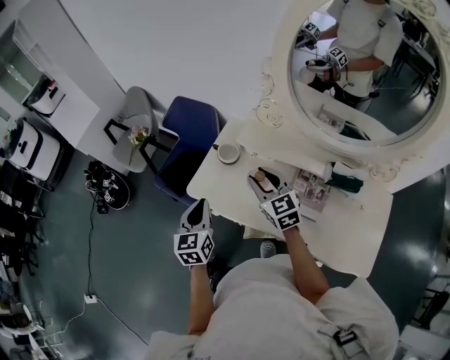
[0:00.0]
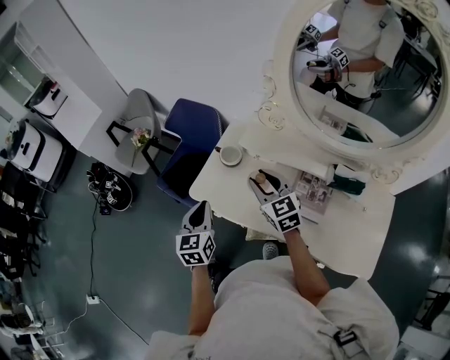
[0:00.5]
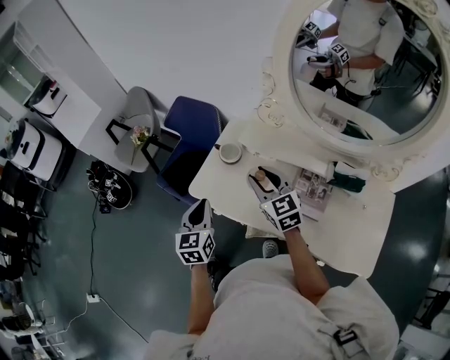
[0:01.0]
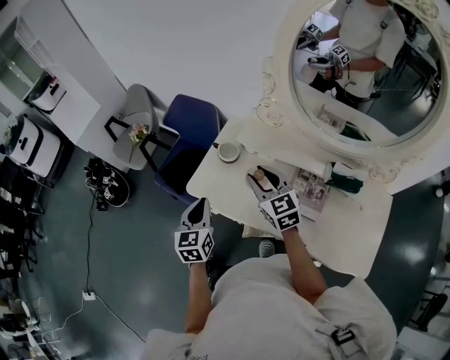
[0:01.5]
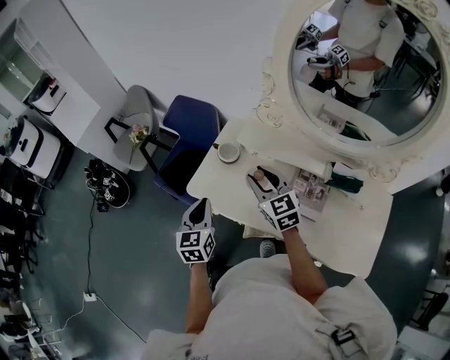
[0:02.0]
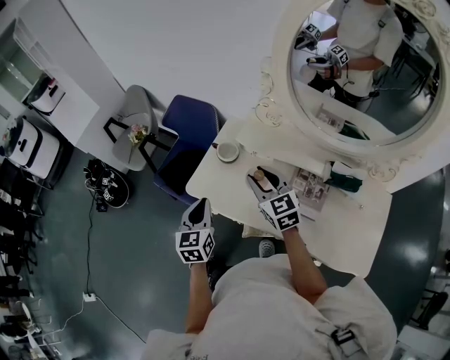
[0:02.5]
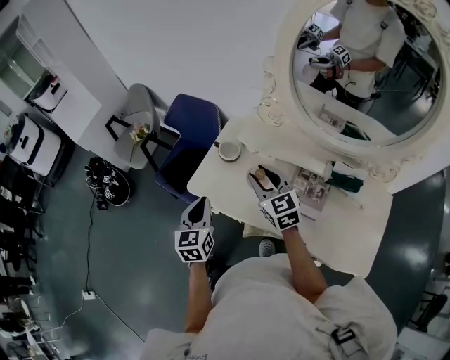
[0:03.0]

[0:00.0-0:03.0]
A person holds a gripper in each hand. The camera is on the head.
0.0 to 1.5 s: The grippers move only a little.
1.5 to 3.0 s: Both grippers stay about where they are.

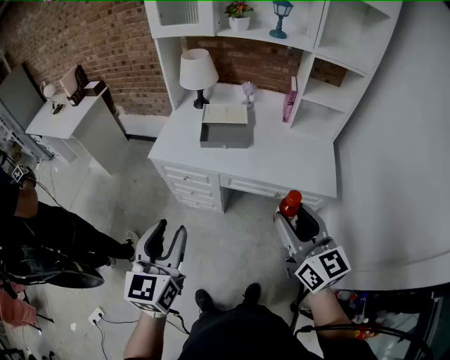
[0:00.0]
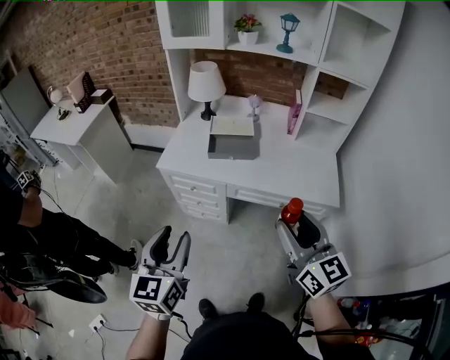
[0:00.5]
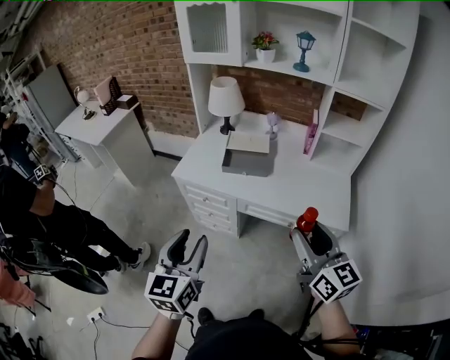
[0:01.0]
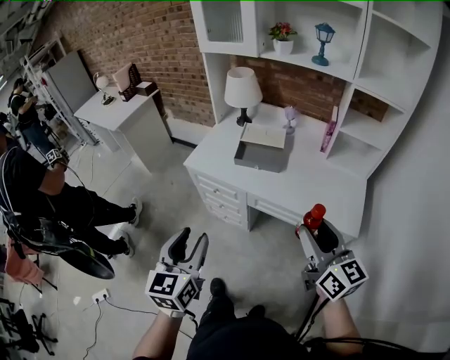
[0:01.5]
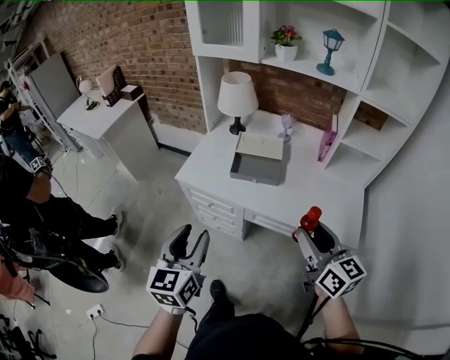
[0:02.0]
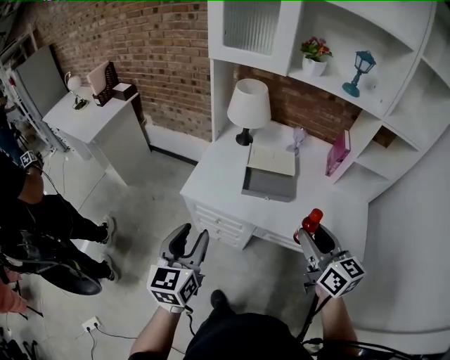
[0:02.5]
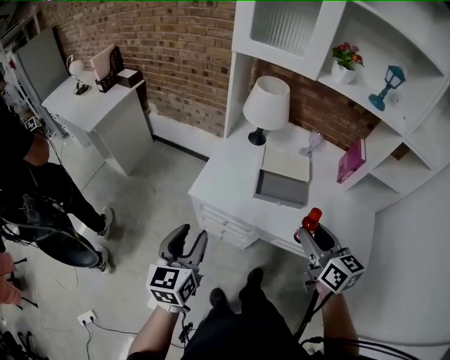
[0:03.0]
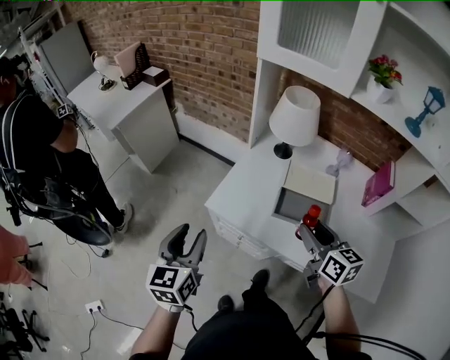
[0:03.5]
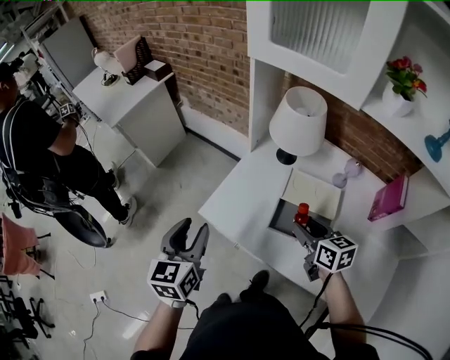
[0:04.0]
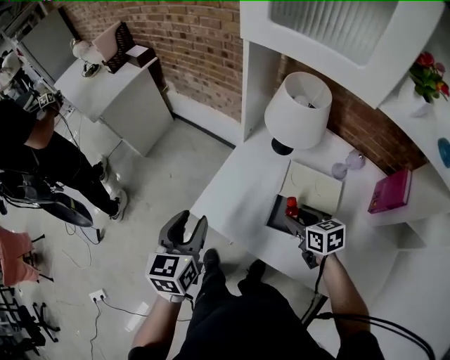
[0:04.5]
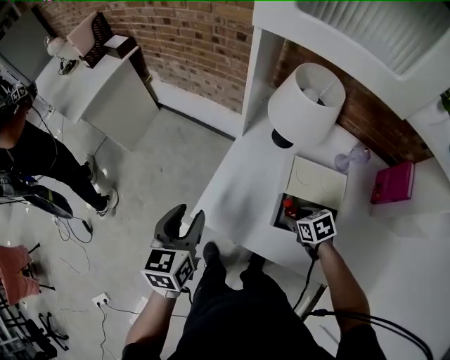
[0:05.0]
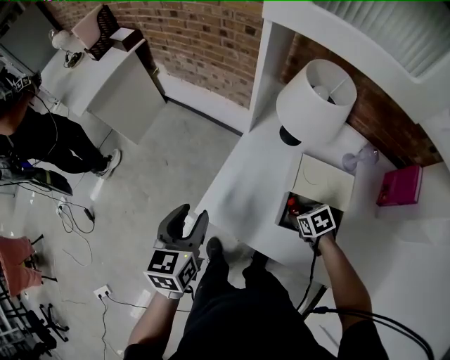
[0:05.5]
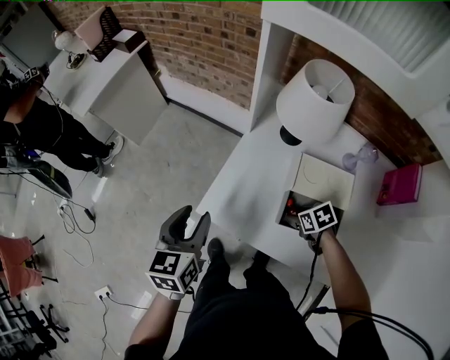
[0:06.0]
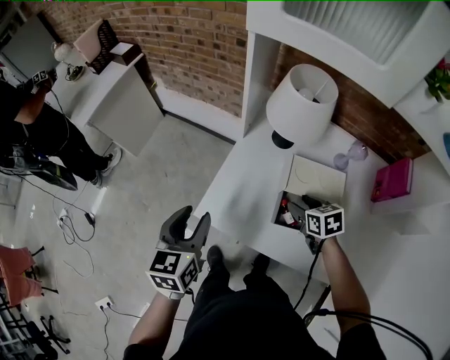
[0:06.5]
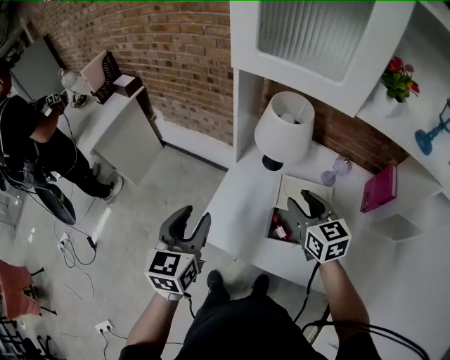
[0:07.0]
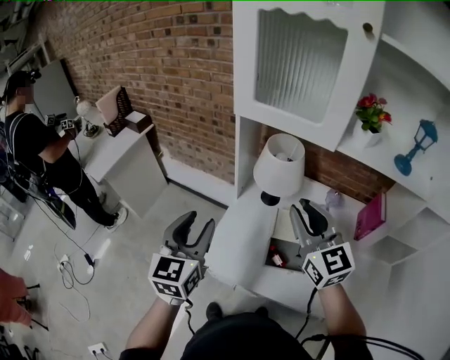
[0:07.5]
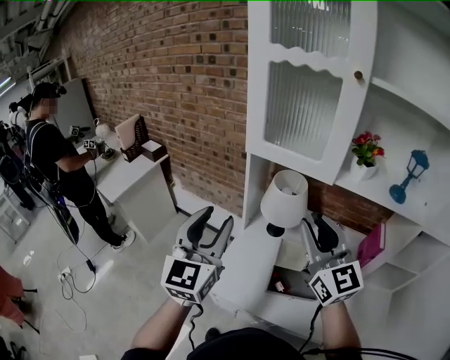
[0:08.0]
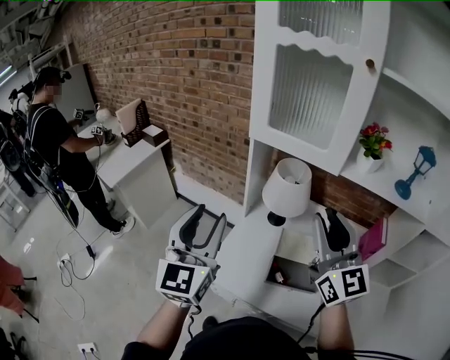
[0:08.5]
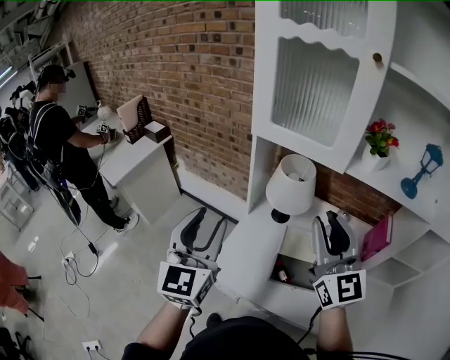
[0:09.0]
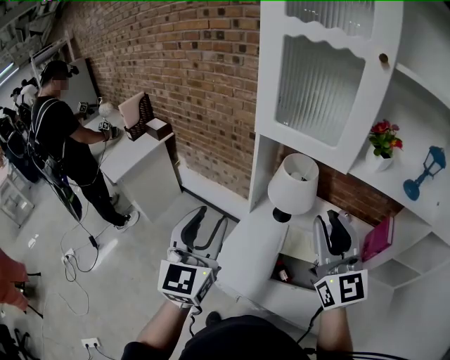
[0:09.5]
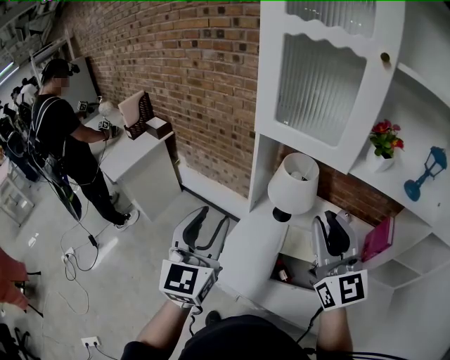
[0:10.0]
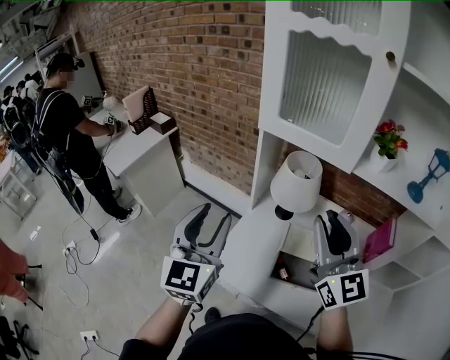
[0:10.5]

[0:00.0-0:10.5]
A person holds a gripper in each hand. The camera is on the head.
0.0 to 2.0 s: Both grippers travel together forward, roughly 10 cm.
2.0 to 4.0 s: The right gripper shifts about 40 cm forward and downward, and turns by roughly 30 degrees. Meanwhile the left gripper goes roughly 35 cm forward.
4.0 to 6.5 s: The right gripper goes some 15 cm downward and forward, and turns by some 20 degrees; the left gripper is displaced forward and downward by about 10 cm.
6.5 to 8.5 s: The left gripper shifts some 25 cm upward, and angles its fingers upward, by approximately 40 degrees, while the right gripper is displaced upward by about 40 cm, points its fingers approximately 70 degrees further upward, and closes.
8.5 to 10.5 s: The grippers move only a little.

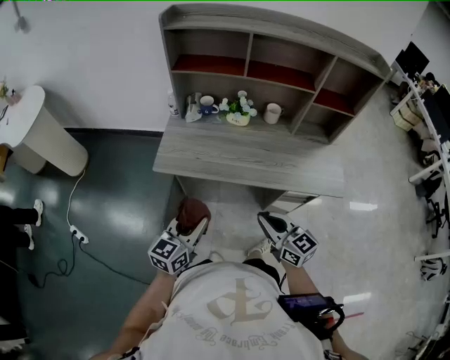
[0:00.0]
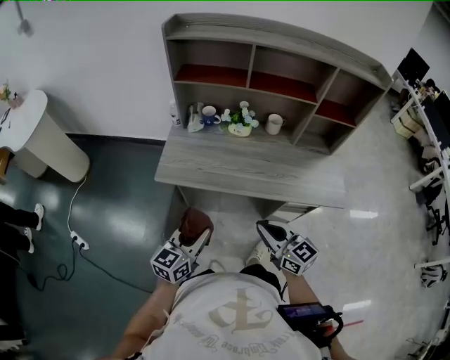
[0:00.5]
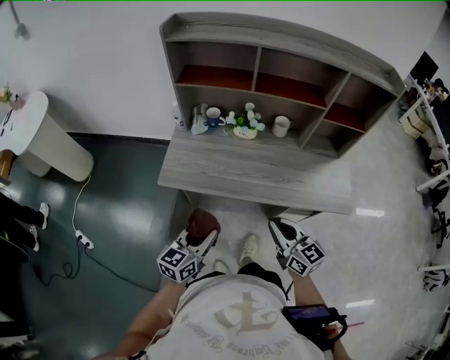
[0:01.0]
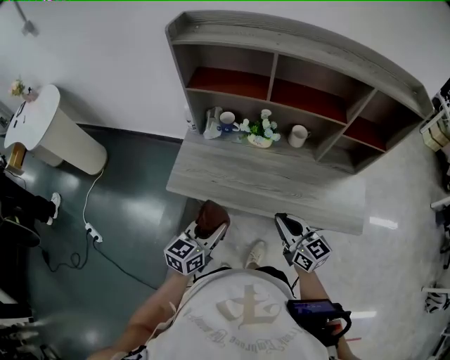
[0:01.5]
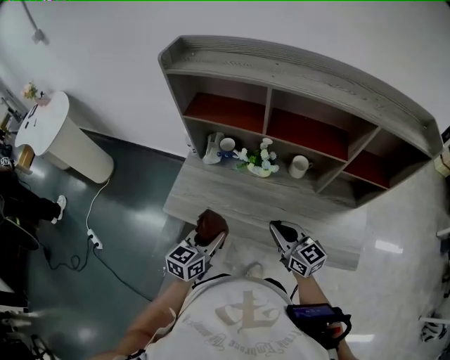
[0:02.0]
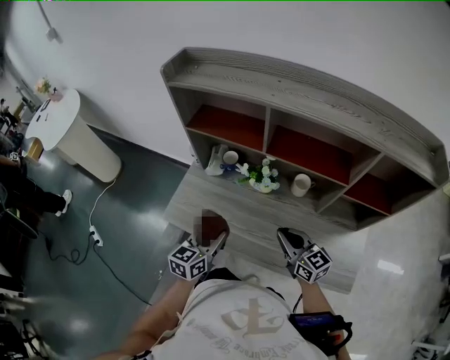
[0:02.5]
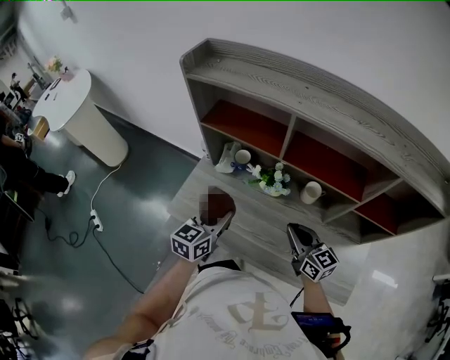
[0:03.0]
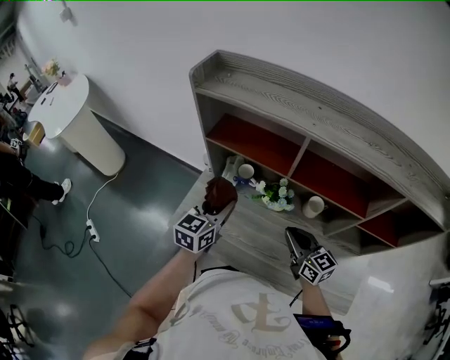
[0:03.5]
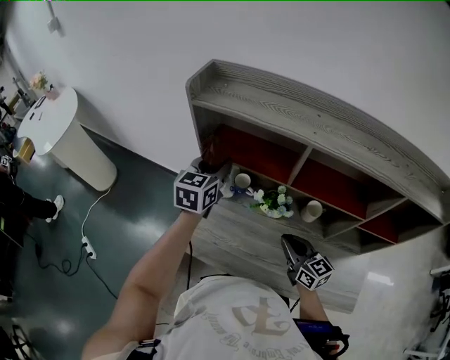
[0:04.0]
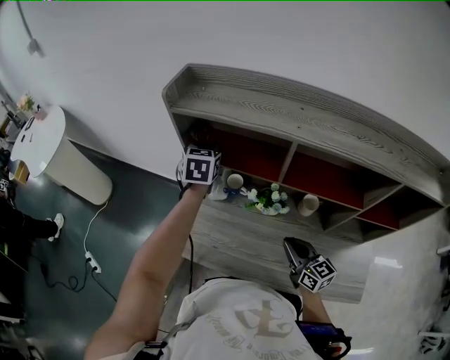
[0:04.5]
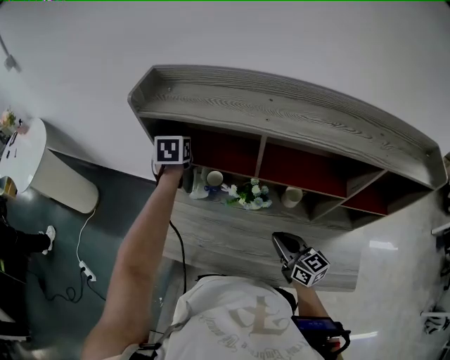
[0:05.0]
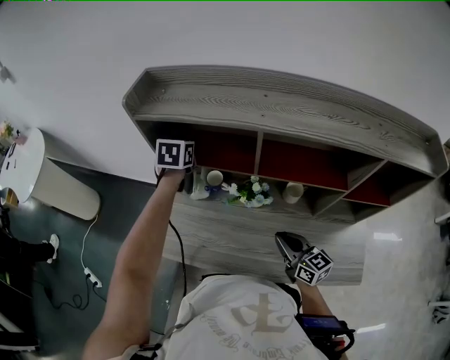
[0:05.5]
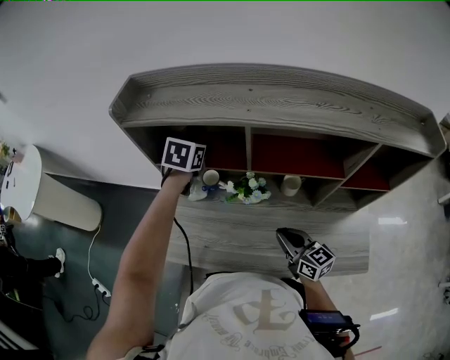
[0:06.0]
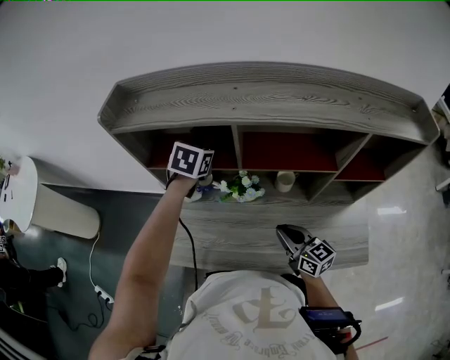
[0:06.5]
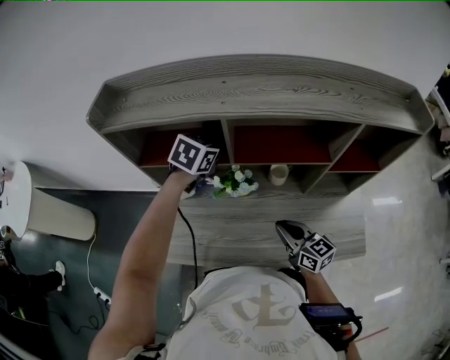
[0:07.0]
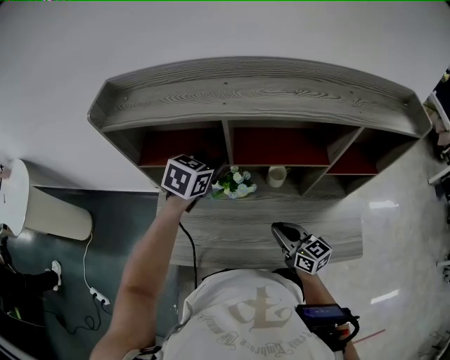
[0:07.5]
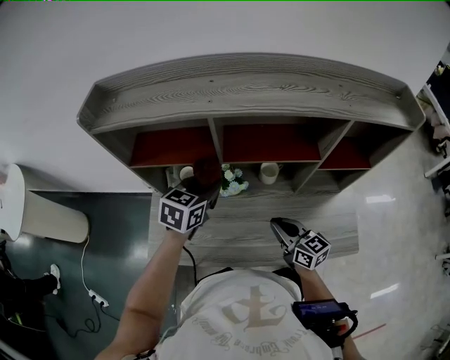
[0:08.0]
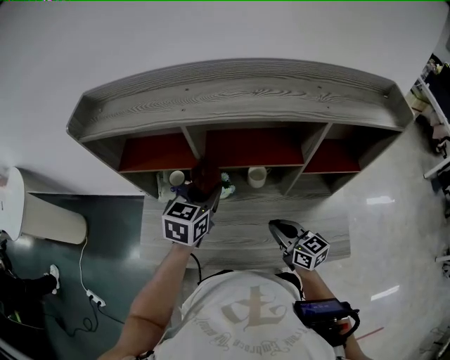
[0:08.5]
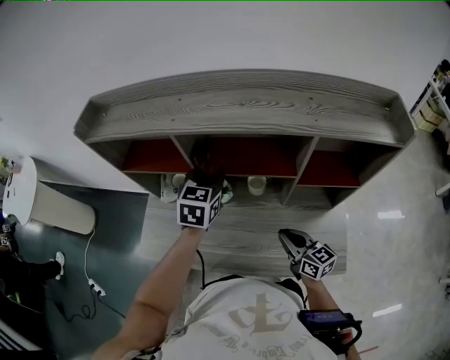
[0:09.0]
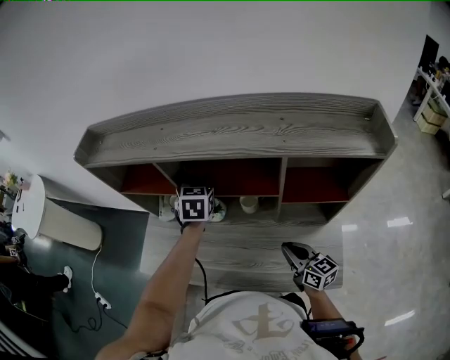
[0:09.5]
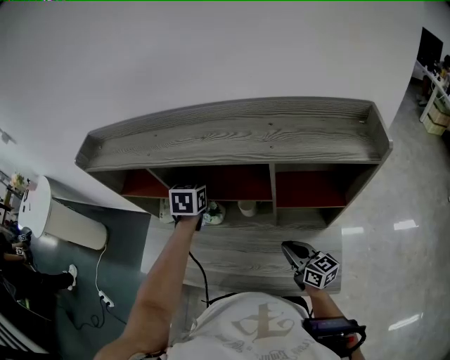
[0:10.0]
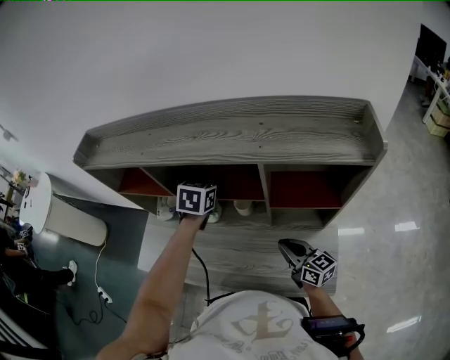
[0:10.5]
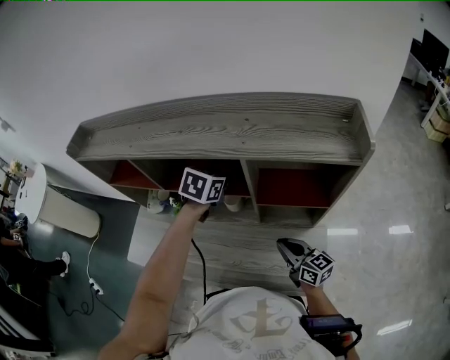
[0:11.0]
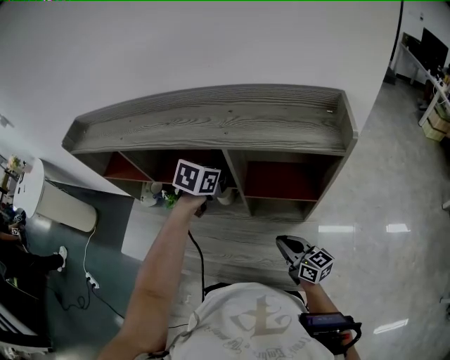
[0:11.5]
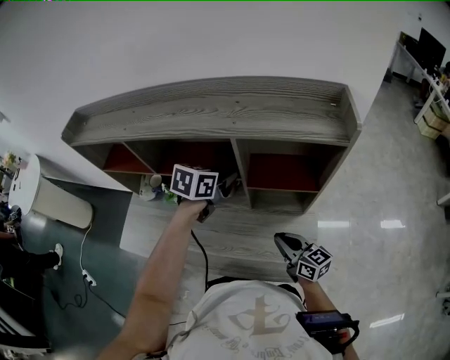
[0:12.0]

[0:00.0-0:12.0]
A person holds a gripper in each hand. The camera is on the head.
0.0 to 2.0 s: The two grippers go roughly 25 cm forward.
2.0 to 4.0 s: The right gripper goes some 15 cm forward. Meanwhile the left gripper moves forward and upward, roughly 35 cm.
4.0 to 6.0 s: The left gripper moves to the right and forward, about 15 cm, and swivels some 30 degrees; the right gripper ends up about 5 cm from where it was.
6.0 to 8.0 s: The left gripper travels backward and to the right by some 20 cm, and changes its angle by about 20 degrees.
8.0 to 10.0 s: The right gripper travels to the right by approximately 20 cm. Meanwhile the left gripper travels to the right and forward by about 15 cm, and turns by roughly 30 degrees.
10.0 to 12.0 s: The right gripper heads to the right and backward, covering about 10 cm. The left gripper goes about 20 cm to the right and backward, and turns by roughly 30 degrees.

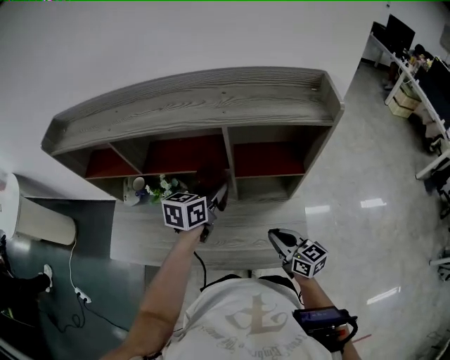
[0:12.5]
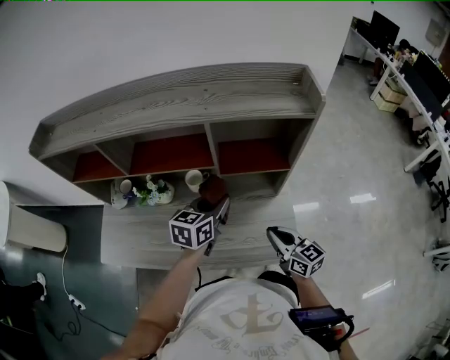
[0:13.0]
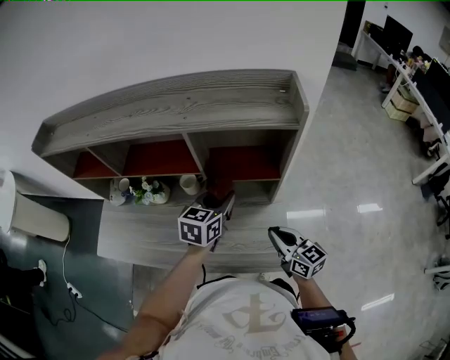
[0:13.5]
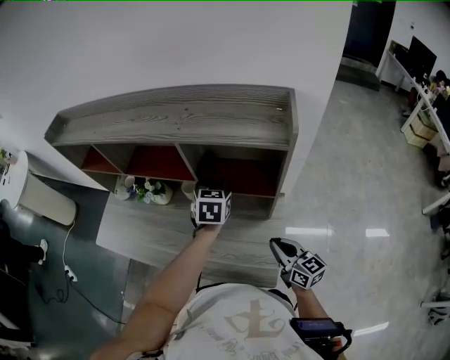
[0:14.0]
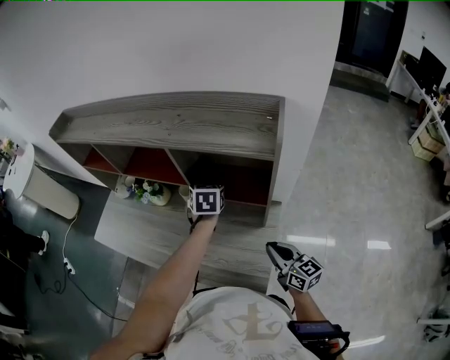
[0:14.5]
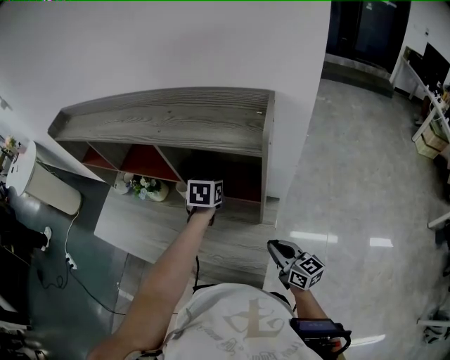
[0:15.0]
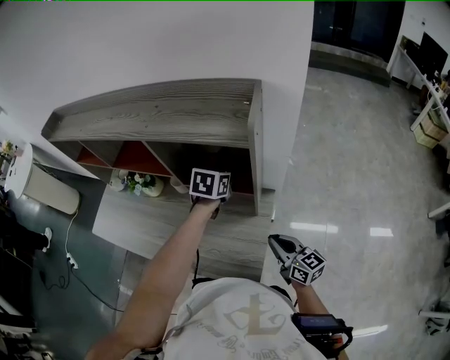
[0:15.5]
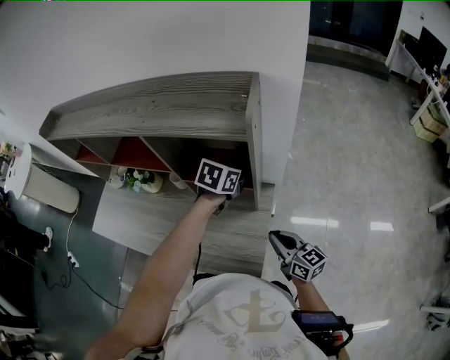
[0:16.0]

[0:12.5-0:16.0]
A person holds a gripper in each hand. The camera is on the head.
12.5 to 14.5 s: The left gripper ends up some 15 cm from where it was, and rotates roughly 40 degrees. Meanwhile the right gripper changes place by roughly 20 cm.
14.5 to 16.0 s: The right gripper changes place by some 5 cm. Meanwhile the left gripper travels to the right by approximately 15 cm, and turns by approximately 30 degrees.
